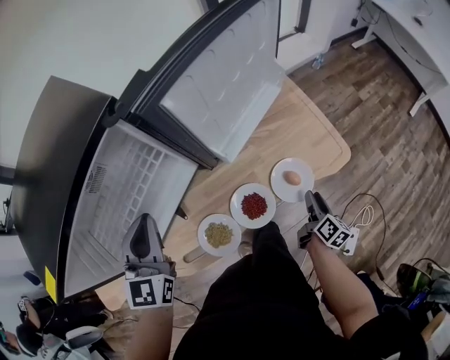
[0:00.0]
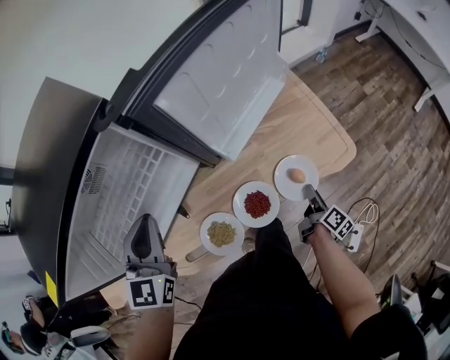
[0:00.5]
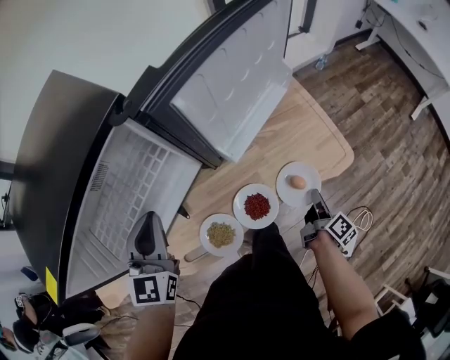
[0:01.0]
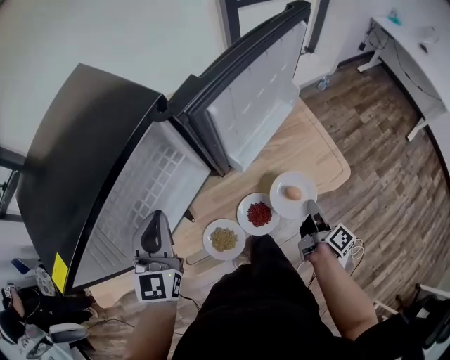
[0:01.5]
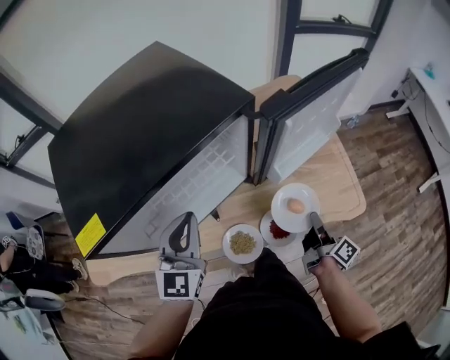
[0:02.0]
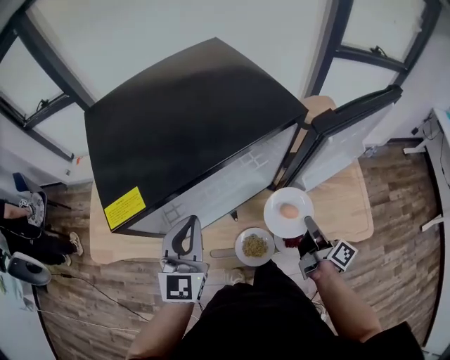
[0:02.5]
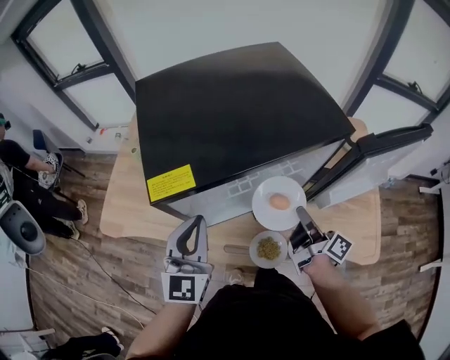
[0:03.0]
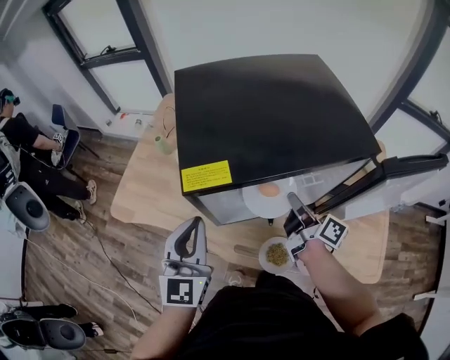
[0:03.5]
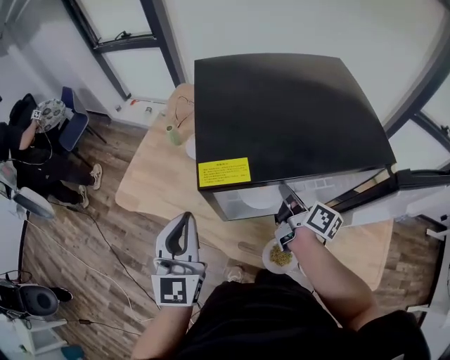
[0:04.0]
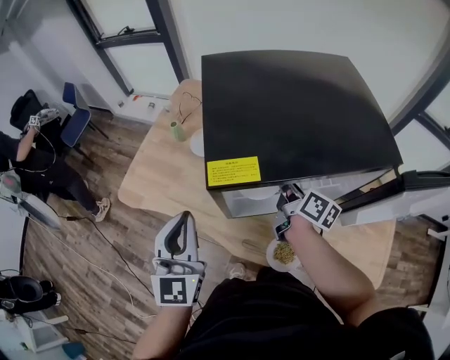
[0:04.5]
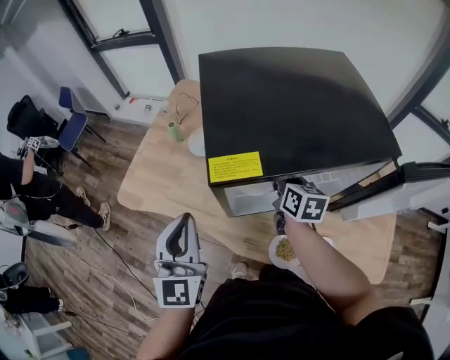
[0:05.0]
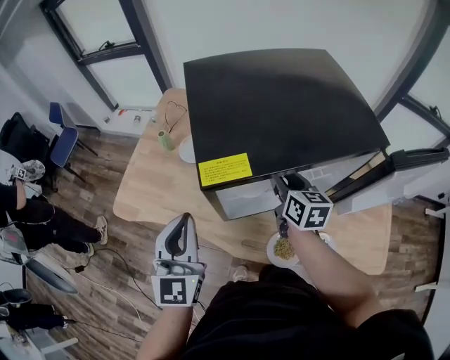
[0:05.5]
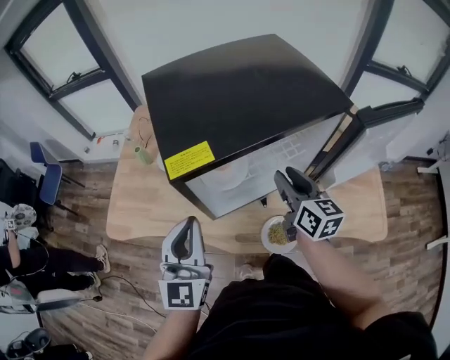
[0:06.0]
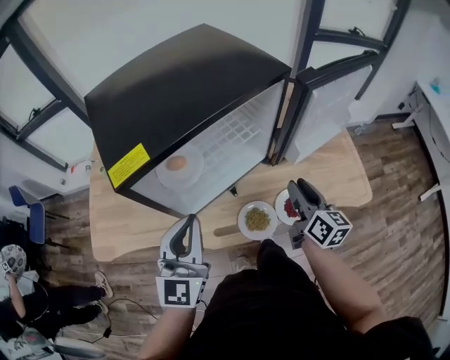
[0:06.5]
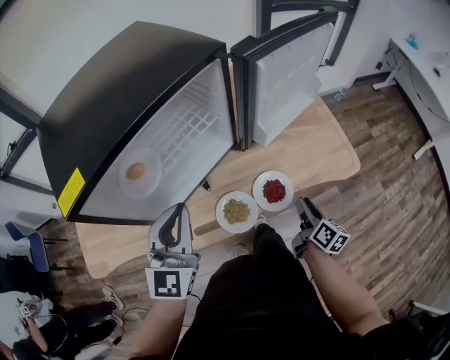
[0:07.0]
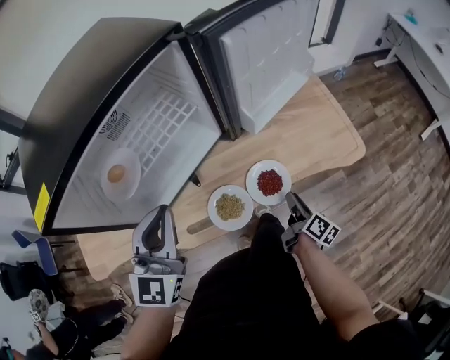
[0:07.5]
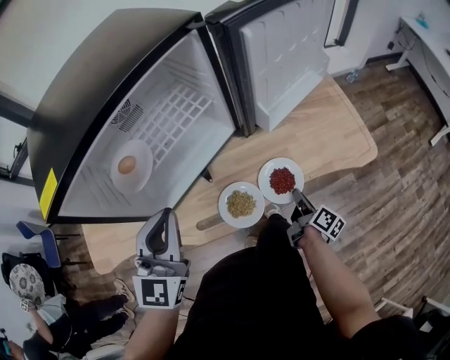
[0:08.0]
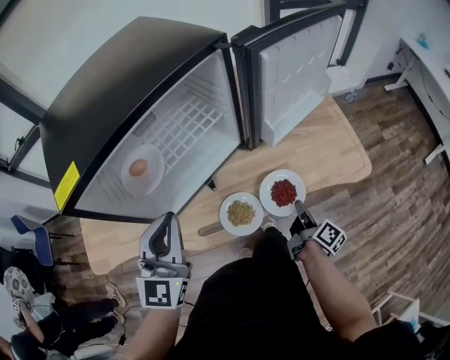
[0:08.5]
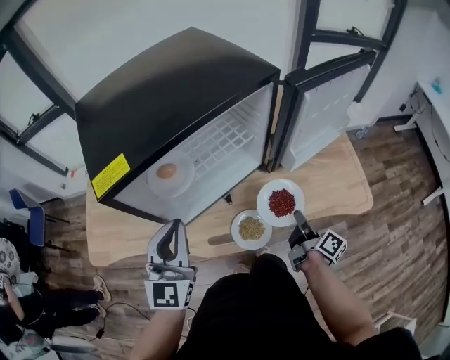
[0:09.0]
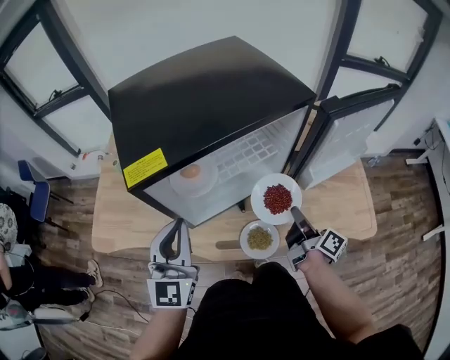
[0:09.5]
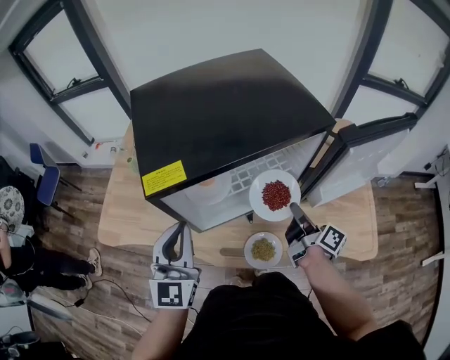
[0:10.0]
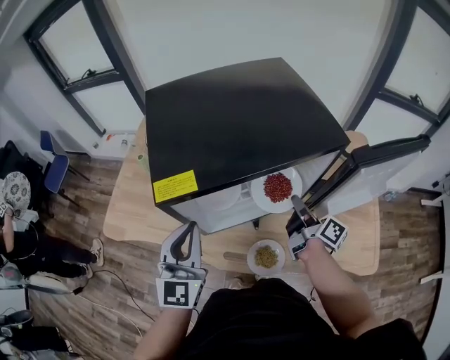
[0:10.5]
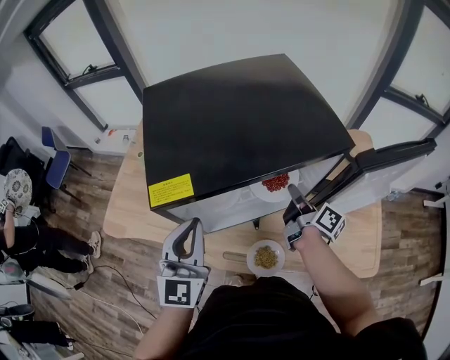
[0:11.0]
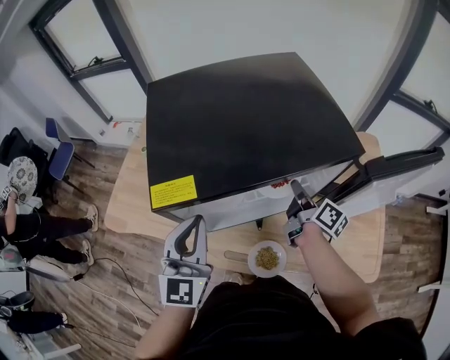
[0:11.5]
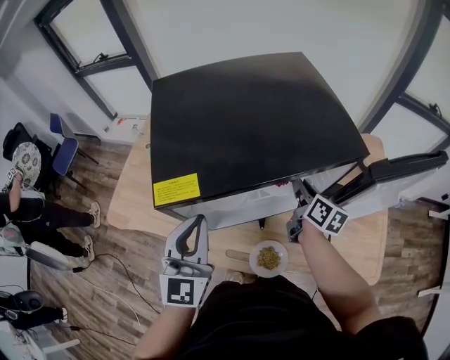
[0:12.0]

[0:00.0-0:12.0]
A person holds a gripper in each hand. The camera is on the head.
0:00.0 to 0:02.0: The right gripper moves upward and to the left, approximately 20 cm, turns by approximately 30 degrees, and closes its fingers; the left gripper changes place by roughly 5 cm.
0:02.0 to 0:04.0: The right gripper shifts by roughly 40 cm, and swivels about 50 degrees. Meanwhile the left gripper shifts by approximately 25 cm, and turns by roughly 40 degrees.
0:04.0 to 0:06.0: The right gripper shifts approximately 10 cm backward and upward, changes its angle by about 40 degrees, and opens up.
0:06.0 to 0:08.0: The right gripper travels downward by about 30 cm, rolls clockwise, seen from behind, by approximately 50 degrees, and closes. Meanwhile the left gripper moves about 15 cm, and turns by approximately 30 degrees.
0:08.0 to 0:10.0: The right gripper heads upward, covering some 25 cm, and rotates roughly 30 degrees. The left gripper moves approximately 15 cm, and changes its angle by roughly 30 degrees.
0:10.0 to 0:12.0: The right gripper is displaced forward by roughly 15 cm, and changes its angle by some 30 degrees.

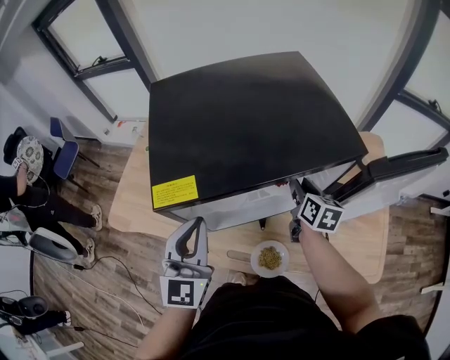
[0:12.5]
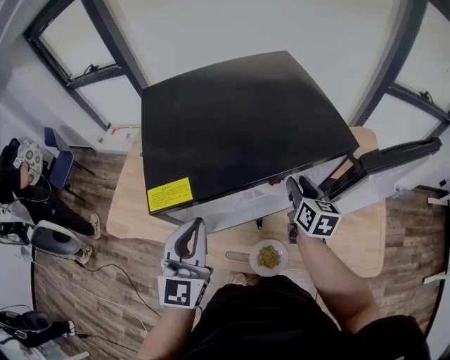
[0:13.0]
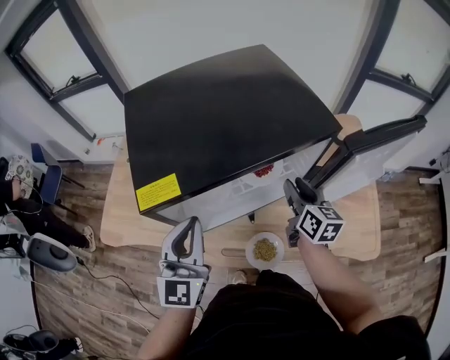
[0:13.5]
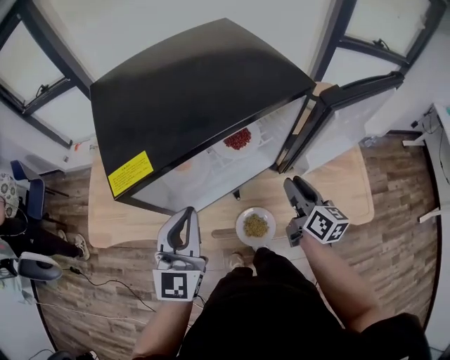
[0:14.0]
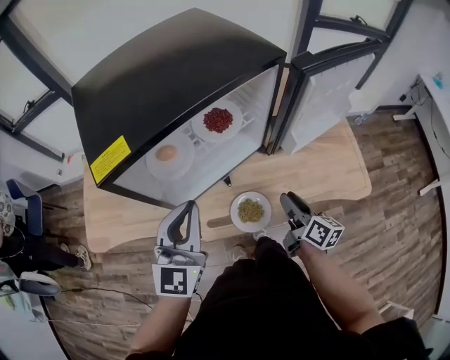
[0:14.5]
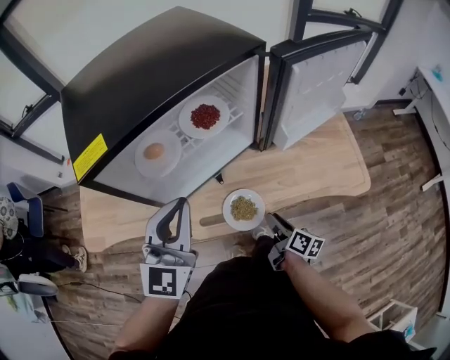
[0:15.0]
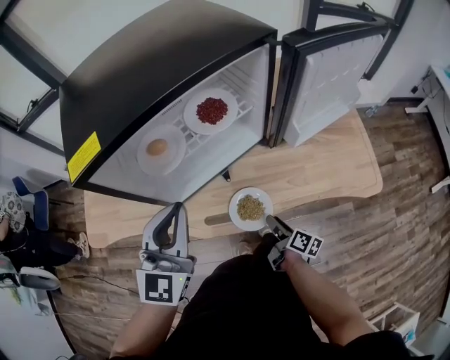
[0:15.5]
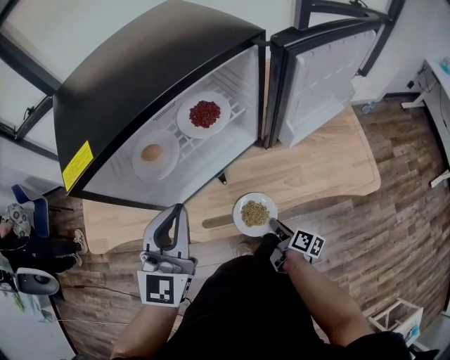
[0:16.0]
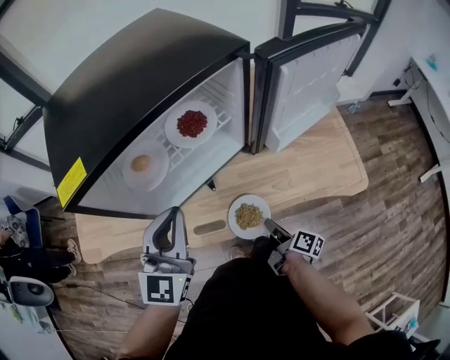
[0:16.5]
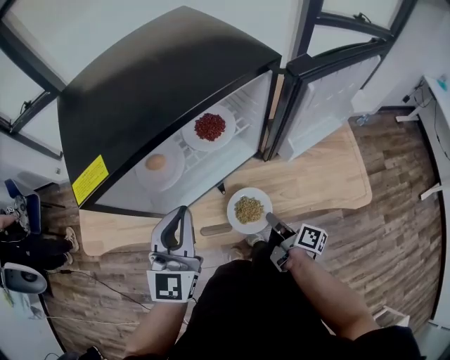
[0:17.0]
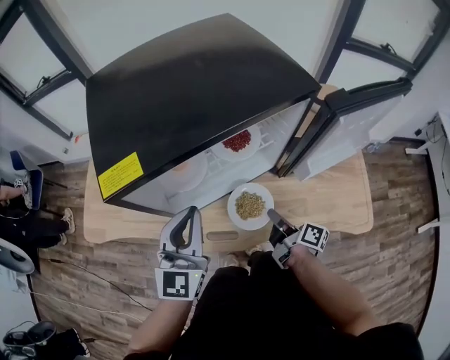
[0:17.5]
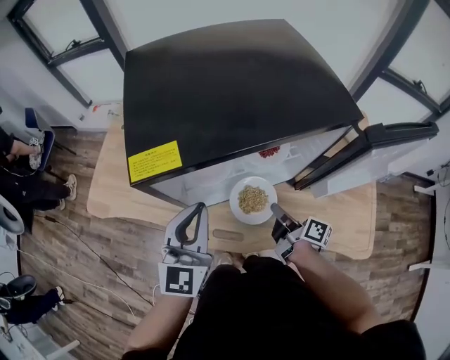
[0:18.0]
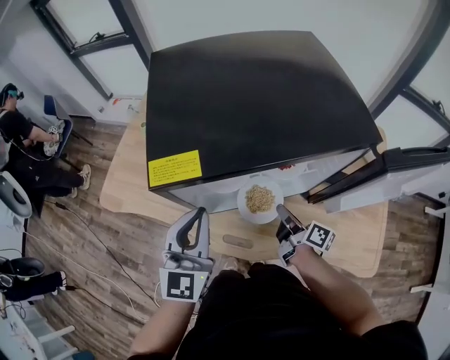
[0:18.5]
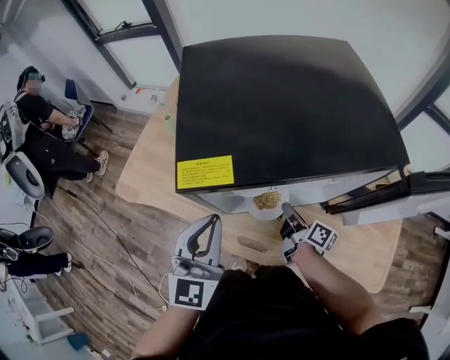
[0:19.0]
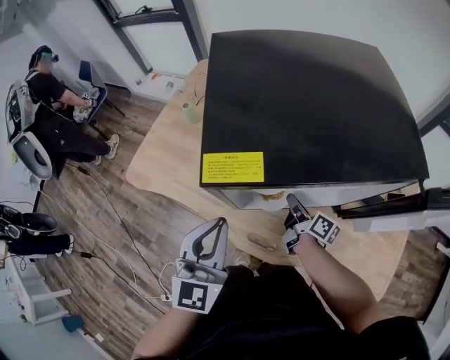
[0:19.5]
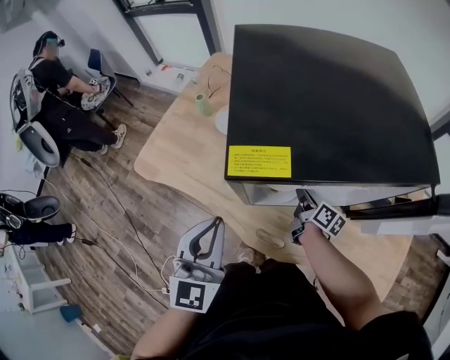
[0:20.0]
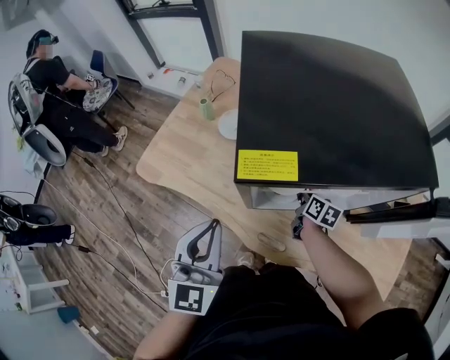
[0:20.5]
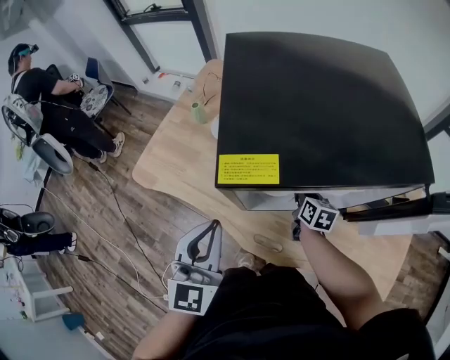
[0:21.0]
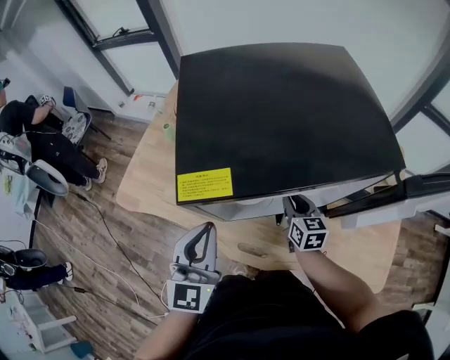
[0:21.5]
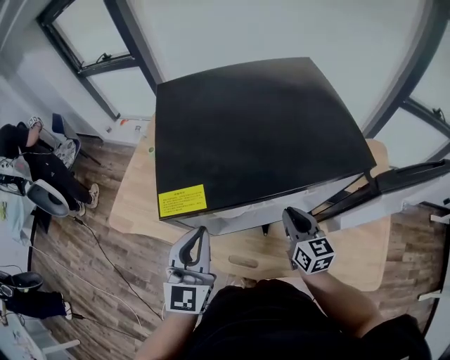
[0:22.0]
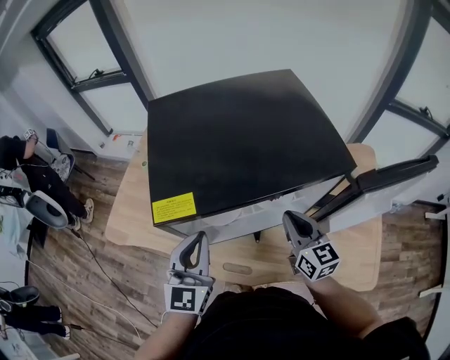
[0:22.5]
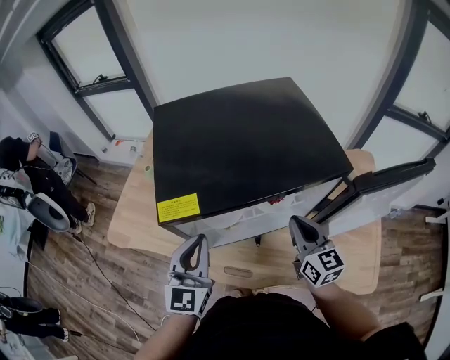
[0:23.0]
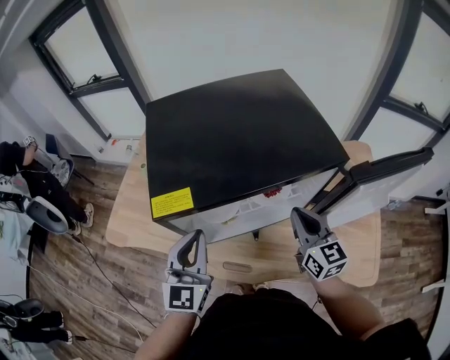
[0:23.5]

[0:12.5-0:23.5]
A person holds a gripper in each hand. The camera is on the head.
0:12.5 to 0:14.5: The left gripper moves to the right, about 5 cm, and rotates about 20 degrees. Meanwhile the right gripper goes about 25 cm backward, and turns by about 30 degrees.
0:14.5 to 0:16.0: The right gripper shifts approximately 20 cm downward, changes its angle by roughly 30 degrees, and closes up.
0:16.0 to 0:18.0: The left gripper travels to the left by about 5 cm, and changes its angle by some 20 degrees, while the right gripper is displaced forward and upward by some 20 cm, and swivels roughly 30 degrees.
0:18.0 to 0:20.0: The left gripper moves to the left, some 10 cm; the right gripper travels forward and to the left by approximately 15 cm.
0:20.0 to 0:21.5: The left gripper moves some 5 cm, while the right gripper goes some 5 cm upward, and rolls counterclockwise, seen from behind, by about 40 degrees.
0:21.5 to 0:23.5: The right gripper shifts some 20 cm upward, to the right and backward.

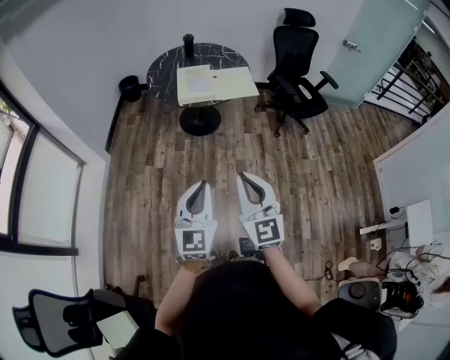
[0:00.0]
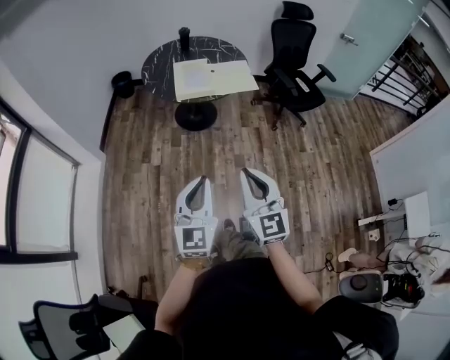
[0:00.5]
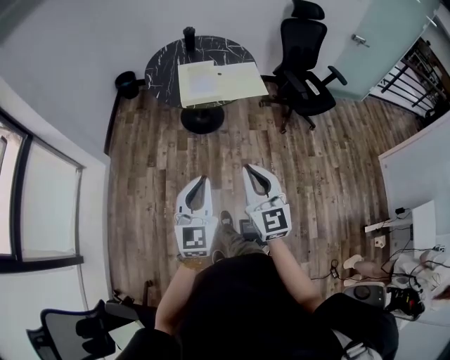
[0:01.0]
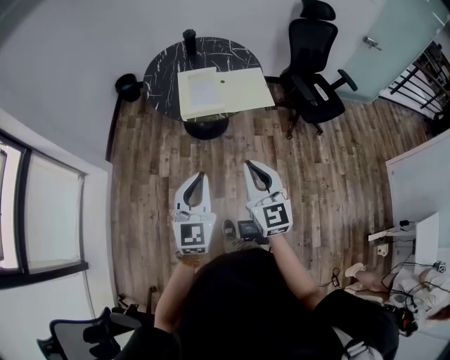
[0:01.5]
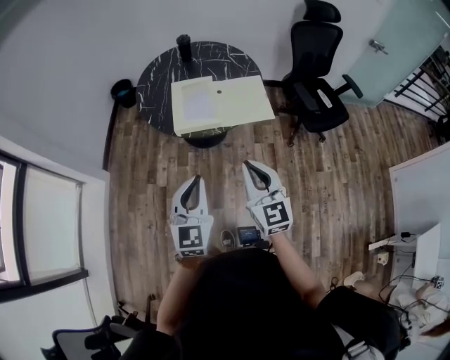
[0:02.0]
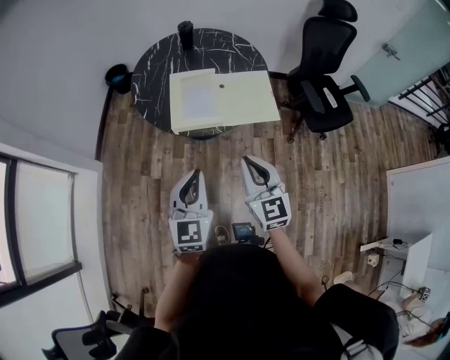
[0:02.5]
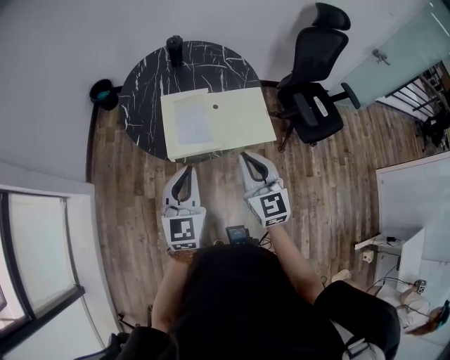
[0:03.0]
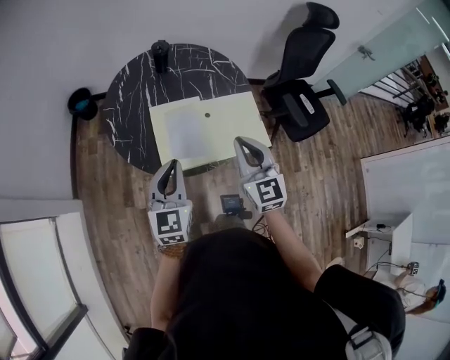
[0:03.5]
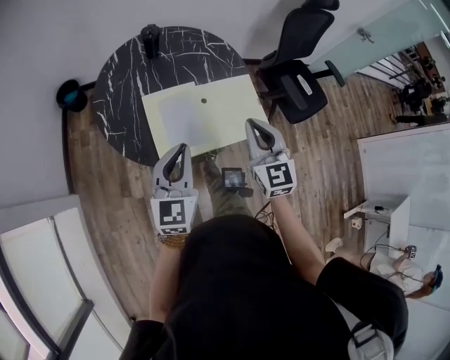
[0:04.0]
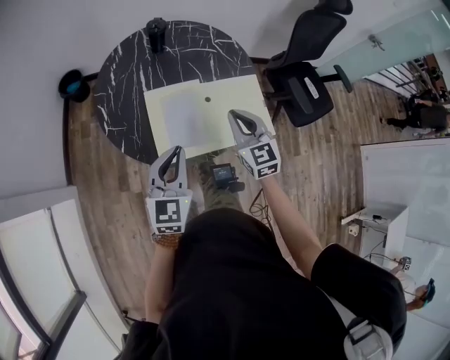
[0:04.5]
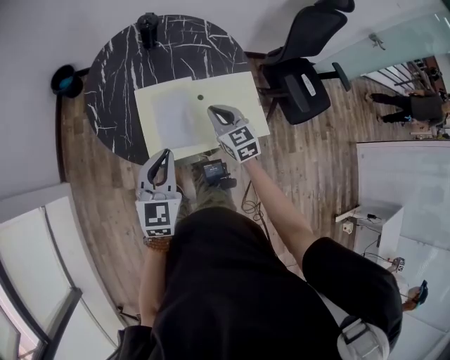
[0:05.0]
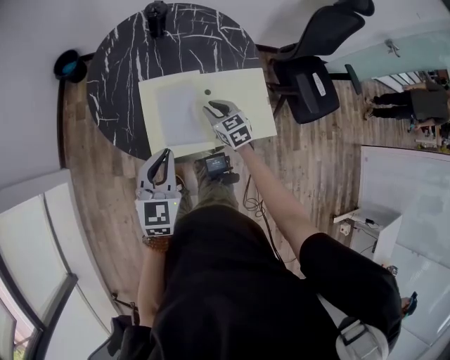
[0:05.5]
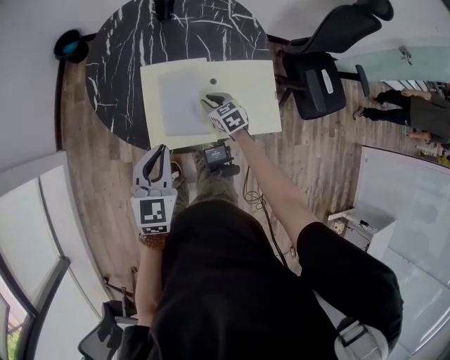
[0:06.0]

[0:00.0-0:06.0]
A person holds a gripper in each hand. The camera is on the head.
0:00.0 to 0:02.0: Both grippers travel together forward, roughly 40 cm.
0:02.0 to 0:04.0: The grippers both shift forward by roughly 35 cm.
0:04.0 to 0:06.0: The left gripper goes some 10 cm downward; the right gripper goes roughly 40 cm downward and forward, and tilts its fingers roughly 40 degrees downward.
